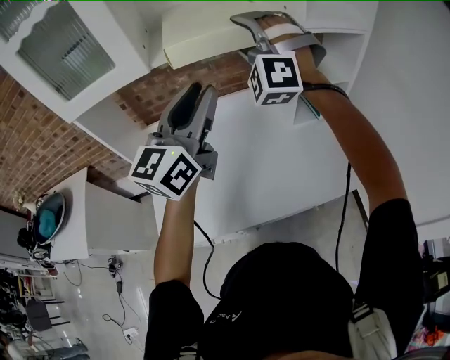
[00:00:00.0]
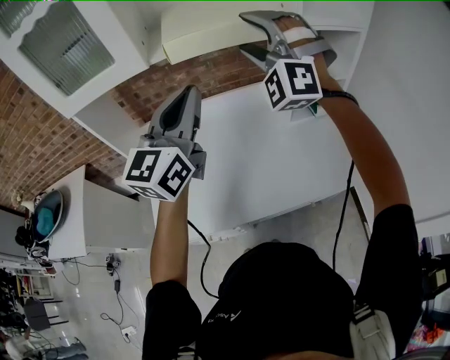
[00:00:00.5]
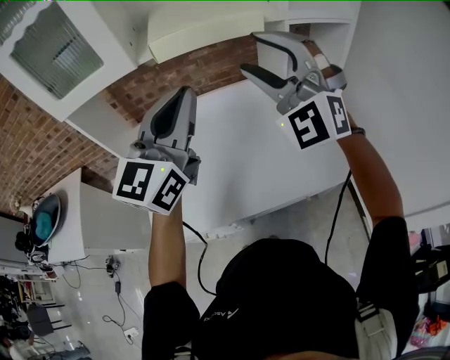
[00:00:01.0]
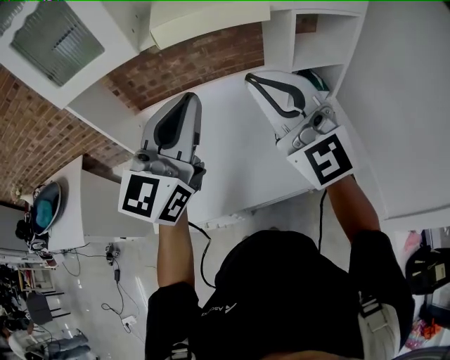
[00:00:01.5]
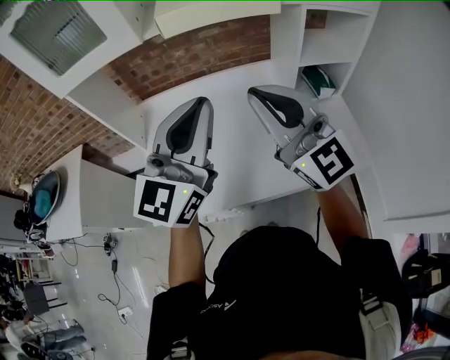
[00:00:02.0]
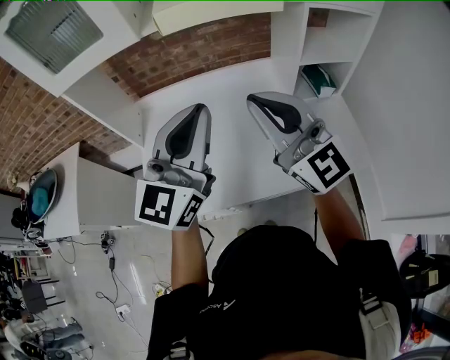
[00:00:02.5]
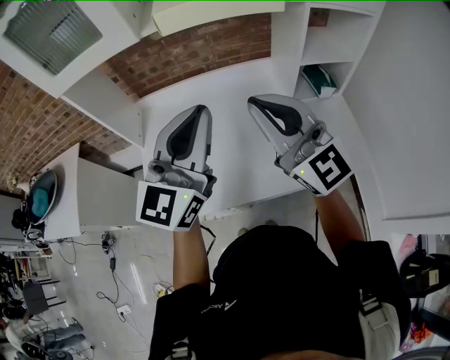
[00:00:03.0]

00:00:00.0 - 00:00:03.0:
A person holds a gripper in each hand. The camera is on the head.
00:00:00.0 - 00:00:01.5: The left gripper travels backward by some 10 cm. Meanwhile the right gripper shifts some 20 cm backward, rolls clockwise, seen from behind, by about 60 degrees, and closes up.
00:00:01.5 - 00:00:03.0: The two grippers go roughly 5 cm downward.

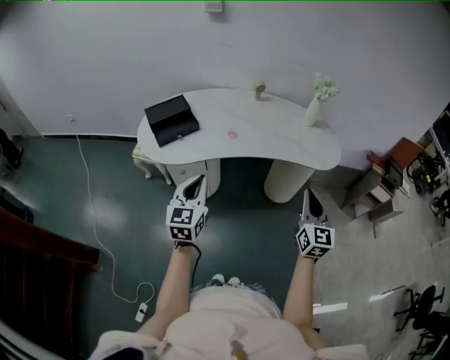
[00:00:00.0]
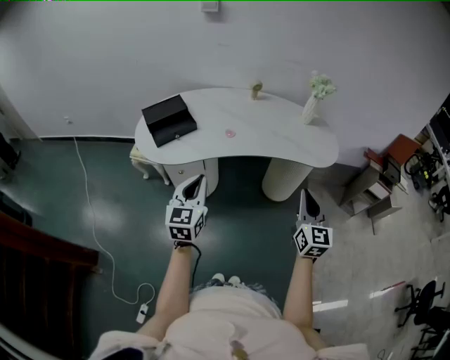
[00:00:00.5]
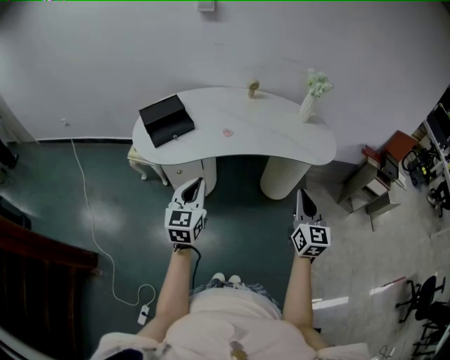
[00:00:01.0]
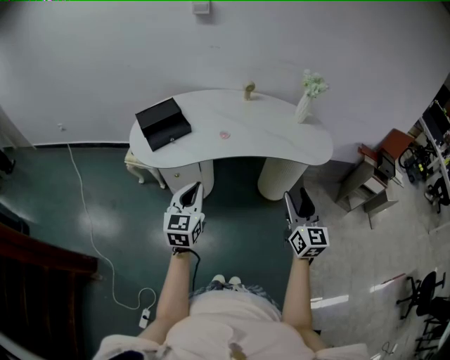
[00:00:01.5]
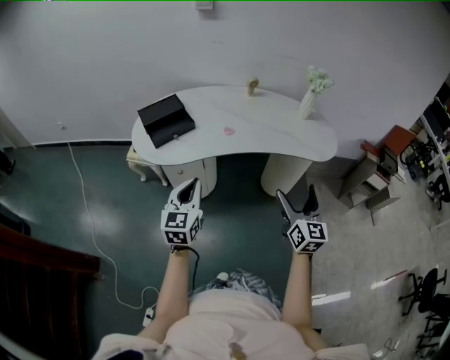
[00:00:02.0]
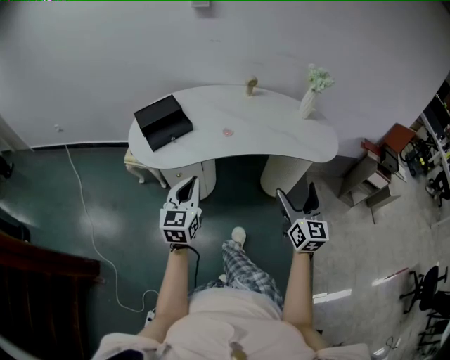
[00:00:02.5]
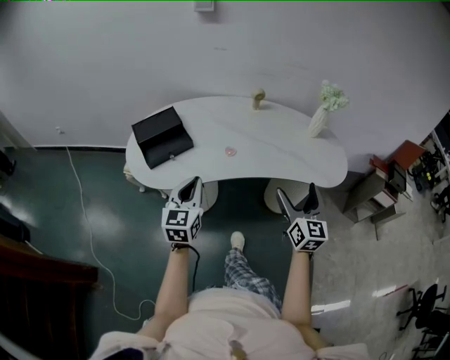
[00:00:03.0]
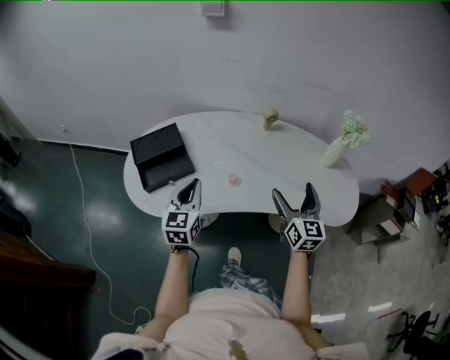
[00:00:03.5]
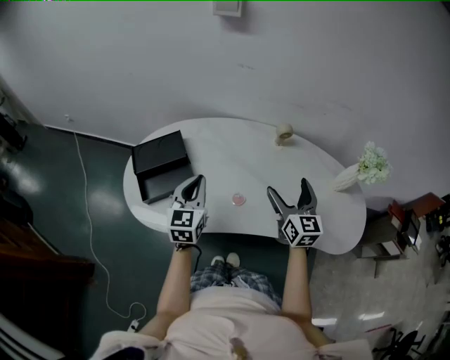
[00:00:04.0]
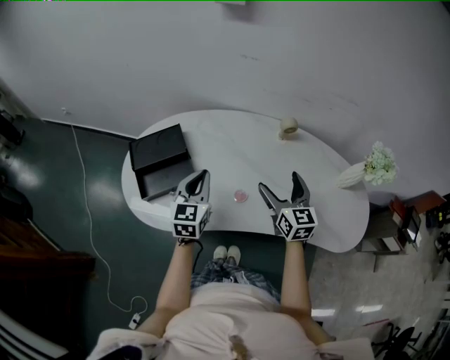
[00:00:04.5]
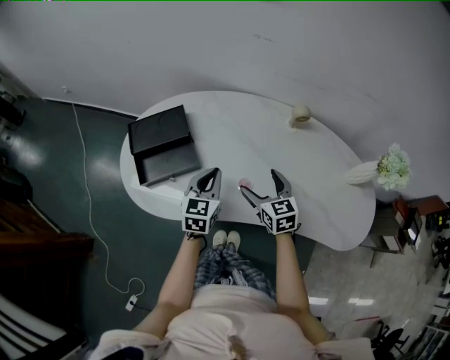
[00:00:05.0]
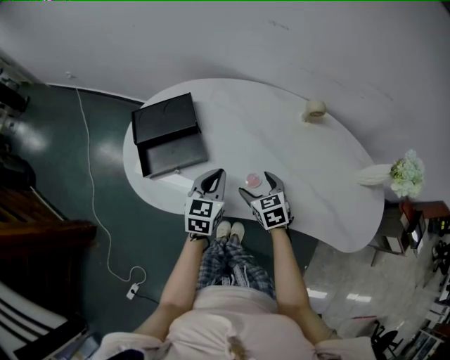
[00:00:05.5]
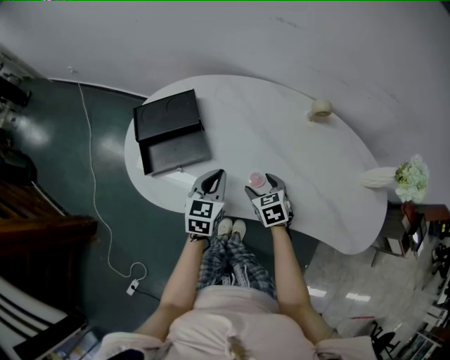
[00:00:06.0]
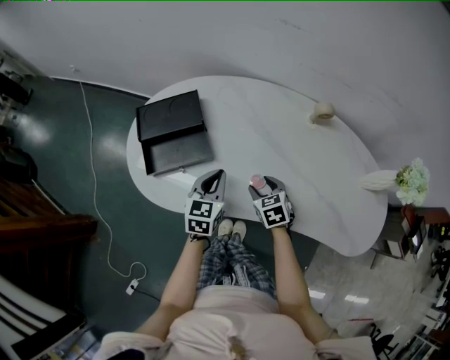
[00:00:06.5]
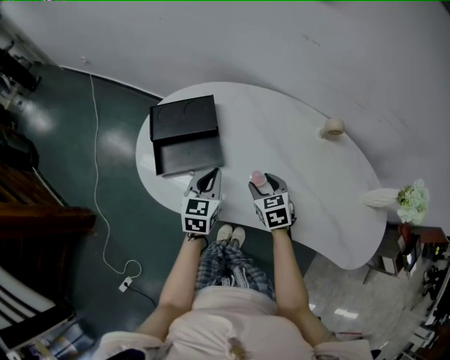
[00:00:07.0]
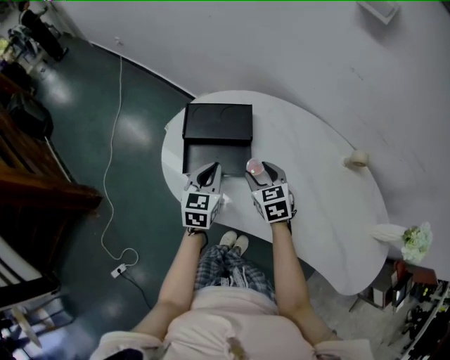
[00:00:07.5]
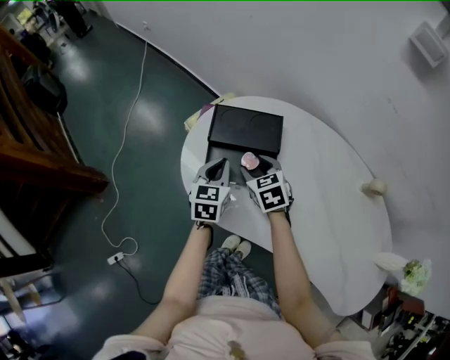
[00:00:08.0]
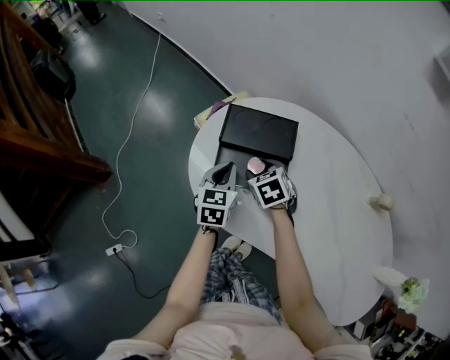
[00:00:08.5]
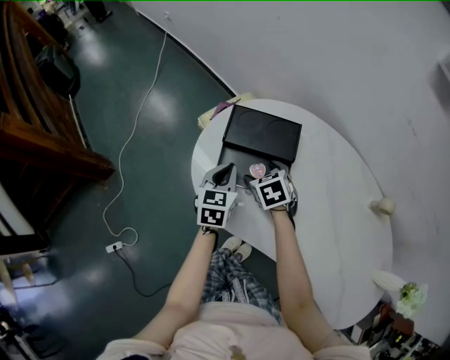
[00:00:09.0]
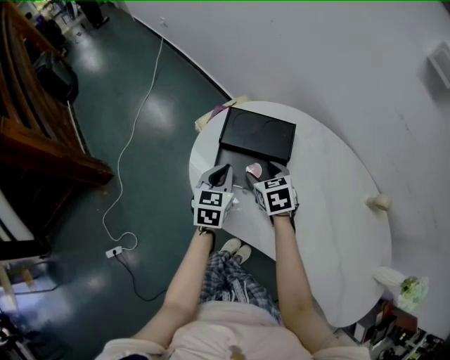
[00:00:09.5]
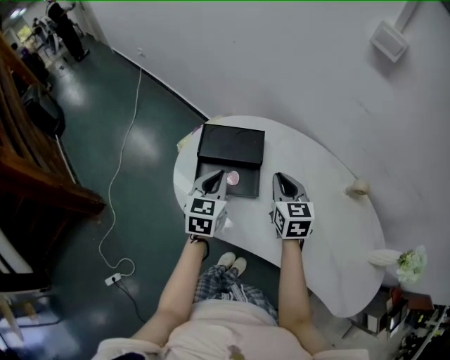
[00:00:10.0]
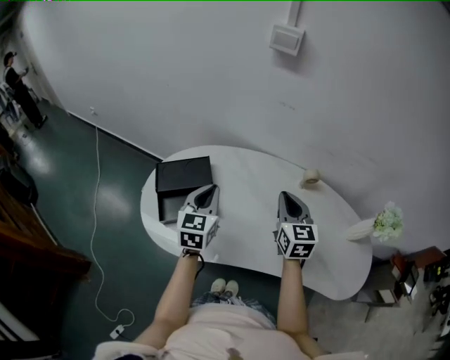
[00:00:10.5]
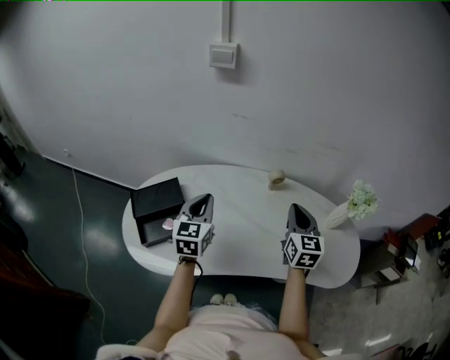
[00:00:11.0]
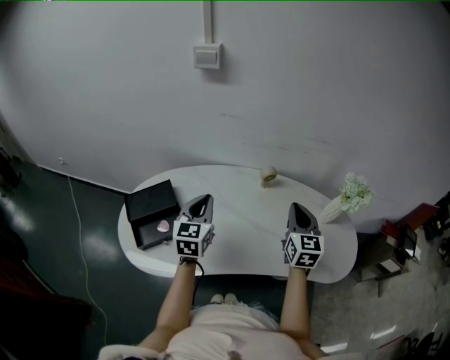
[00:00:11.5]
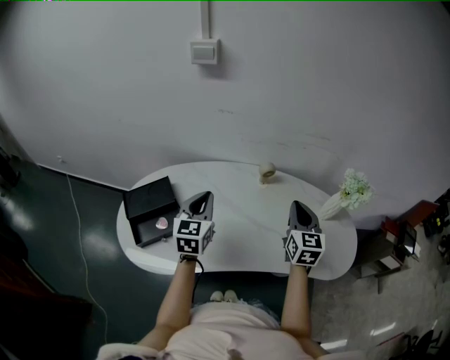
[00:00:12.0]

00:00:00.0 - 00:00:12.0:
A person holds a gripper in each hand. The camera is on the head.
00:00:00.0 - 00:00:02.0: The right gripper is displaced to the left by approximately 5 cm, and opens its fingers.
00:00:02.0 - 00:00:04.0: The pair of grippers is taken forward, about 40 cm.
00:00:04.0 - 00:00:06.0: The right gripper travels downward and to the left by roughly 25 cm, and points its fingers approximately 40 degrees further downward, while the left gripper is displaced downward by roughly 15 cm.
00:00:06.0 - 00:00:08.0: The left gripper ends up some 25 cm from where it was, and turns by some 30 degrees. Meanwhile the right gripper moves roughly 30 cm, and changes its angle by approximately 30 degrees.
00:00:08.0 - 00:00:10.0: The left gripper travels upward by some 10 cm. The right gripper moves upward and to the right, some 15 cm, swivels about 30 degrees, and closes.
00:00:10.0 - 00:00:12.0: The left gripper shifts by some 30 cm, and turns by some 30 degrees. The right gripper changes place by some 40 cm, and rotates roughly 40 degrees.

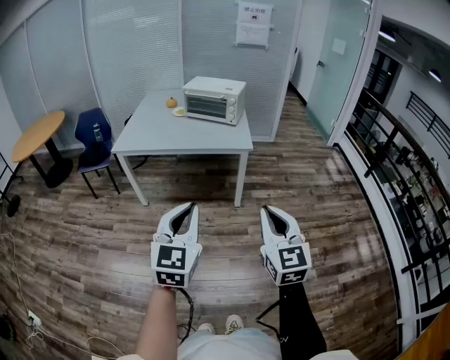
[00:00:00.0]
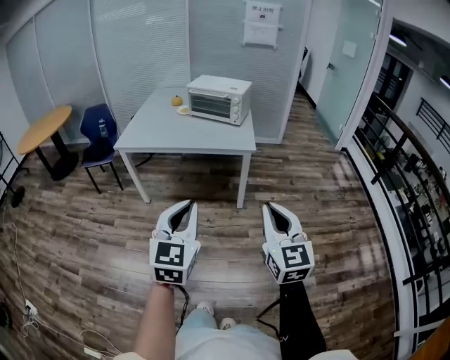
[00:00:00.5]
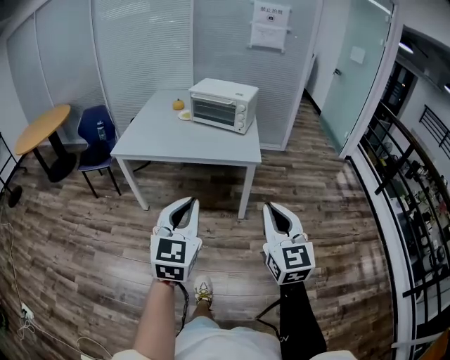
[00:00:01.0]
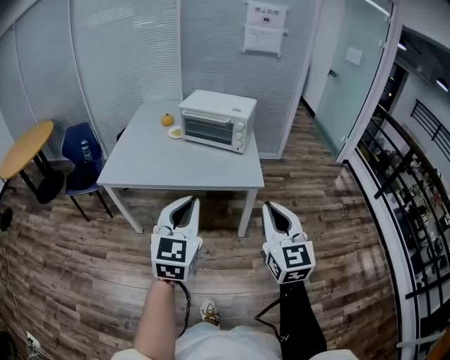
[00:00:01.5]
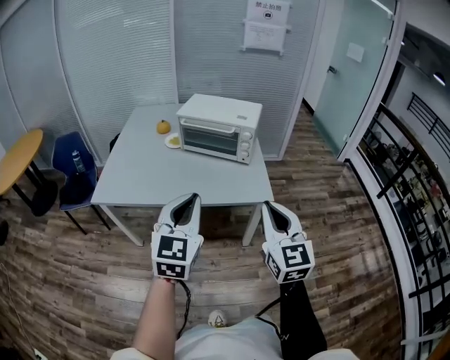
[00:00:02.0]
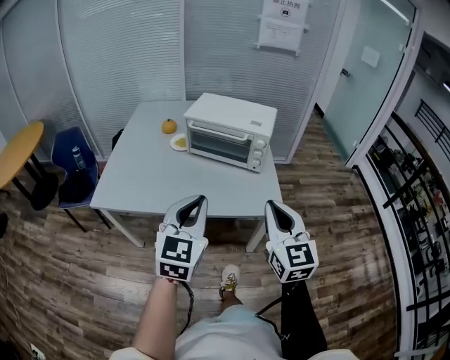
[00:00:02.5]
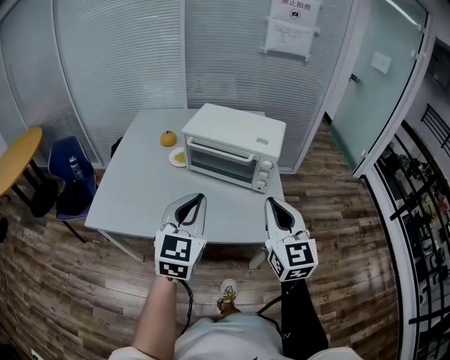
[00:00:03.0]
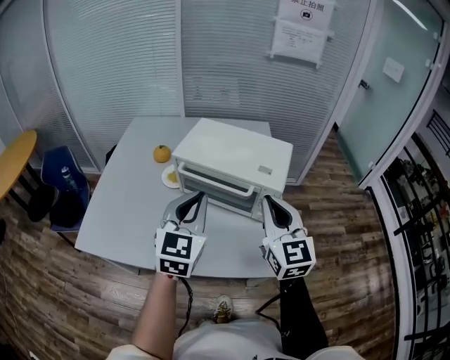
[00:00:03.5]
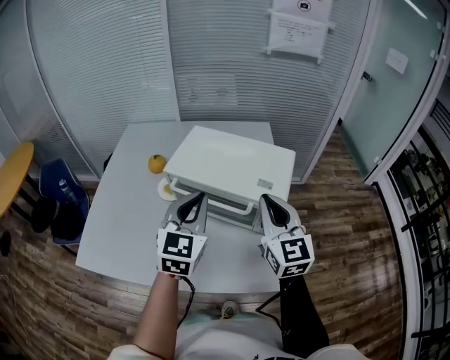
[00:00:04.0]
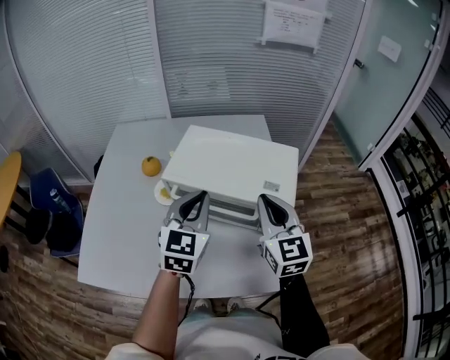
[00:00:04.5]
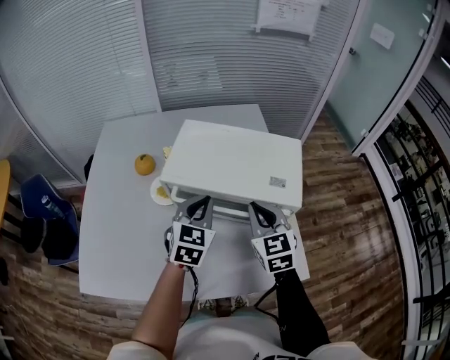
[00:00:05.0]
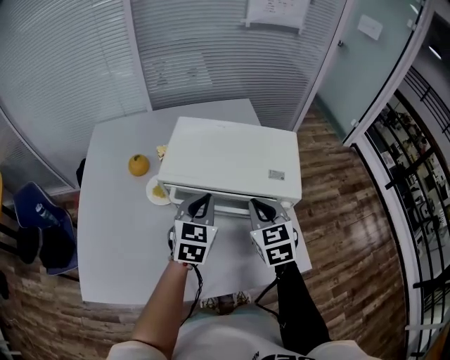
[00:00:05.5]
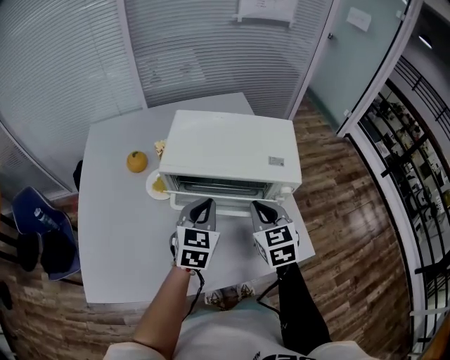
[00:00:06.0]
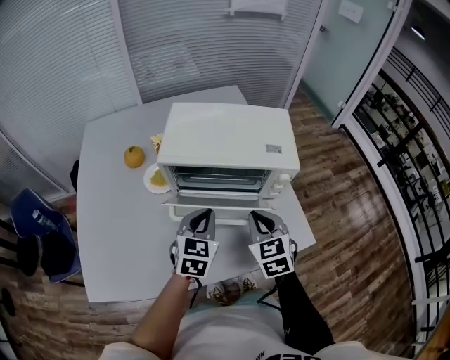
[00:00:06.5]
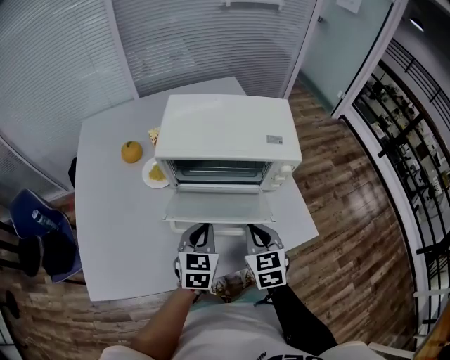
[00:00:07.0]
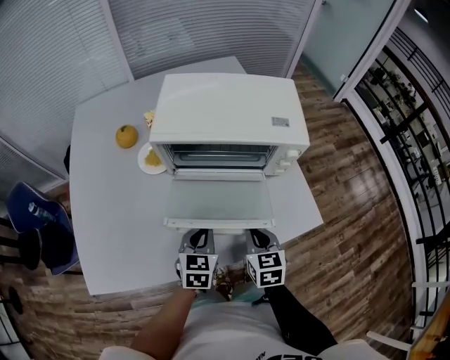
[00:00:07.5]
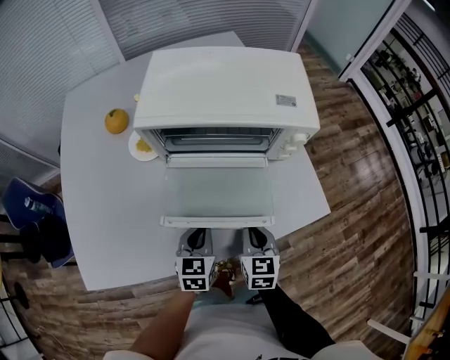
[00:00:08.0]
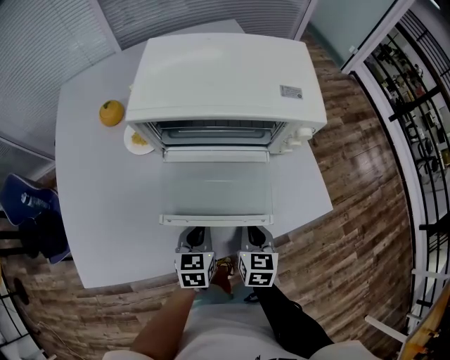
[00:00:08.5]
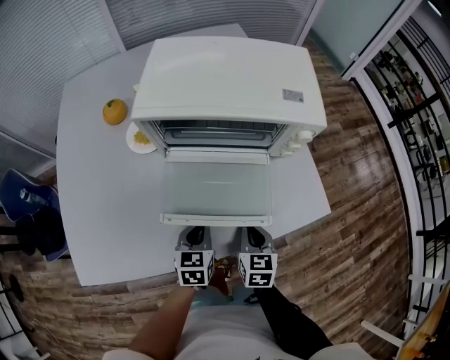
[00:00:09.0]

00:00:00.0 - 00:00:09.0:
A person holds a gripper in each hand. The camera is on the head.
00:00:00.0 - 00:00:02.0: The pair of grippers is taken forward, some 40 cm.
00:00:02.0 - 00:00:04.5: The pair of grippers is taken forward, approximately 50 cm.
00:00:04.5 - 00:00:07.0: Both grippers move downward and backward, roughly 25 cm. The left gripper changes its angle by some 20 degrees; the right gripper turns by about 30 degrees.
00:00:07.0 - 00:00:09.0: Both grippers move downward, about 15 cm.

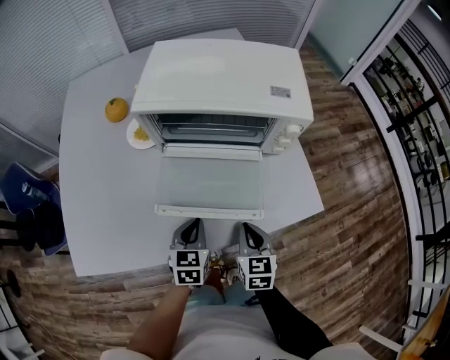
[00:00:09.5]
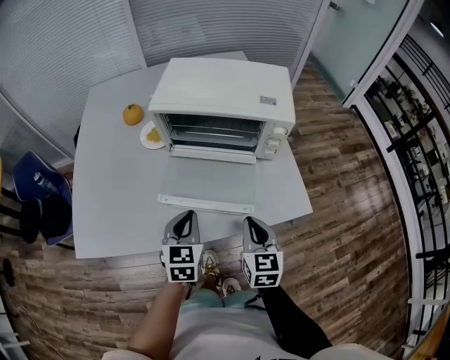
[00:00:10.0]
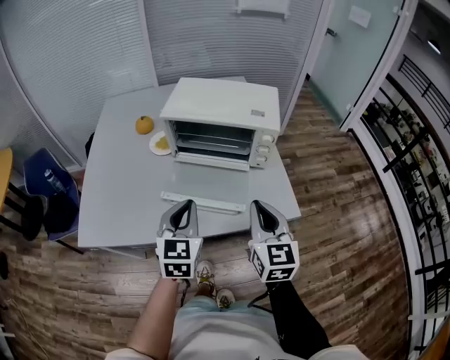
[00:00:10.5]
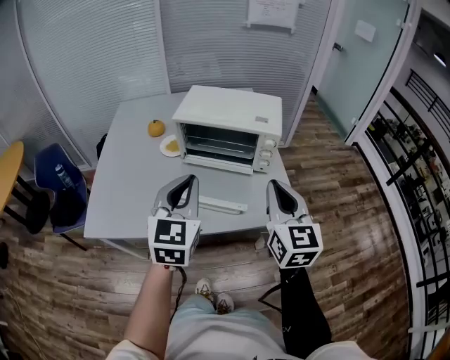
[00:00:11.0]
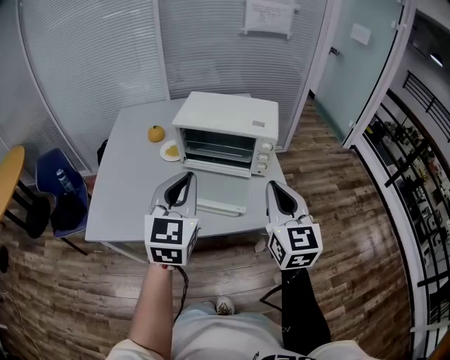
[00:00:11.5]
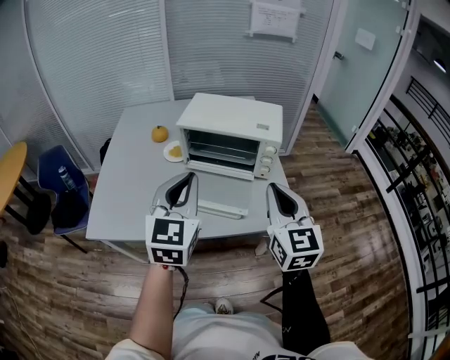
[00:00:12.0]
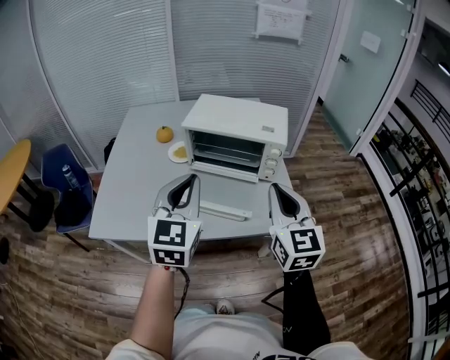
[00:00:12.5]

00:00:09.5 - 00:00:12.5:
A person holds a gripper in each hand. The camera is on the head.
00:00:09.5 - 00:00:11.0: The grippers both shift upward by about 35 cm. The right gripper tips its fingers upward by approximately 30 degrees, while the left gripper tilts its fingers about 30 degrees upward.
00:00:11.0 - 00:00:12.5: The grippers move only a little.
